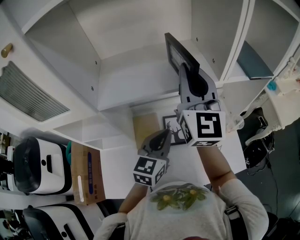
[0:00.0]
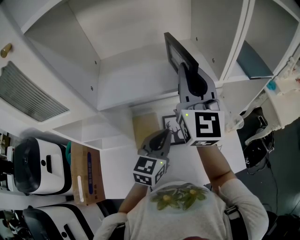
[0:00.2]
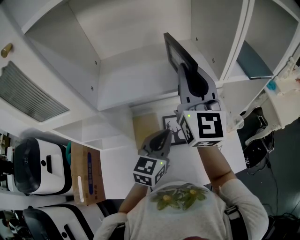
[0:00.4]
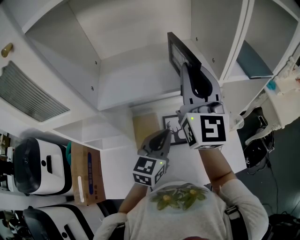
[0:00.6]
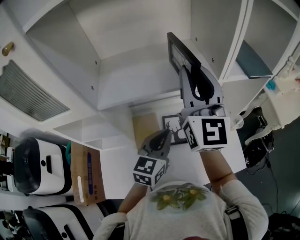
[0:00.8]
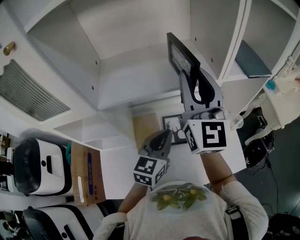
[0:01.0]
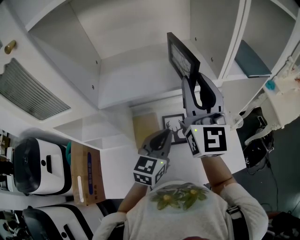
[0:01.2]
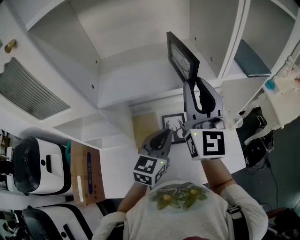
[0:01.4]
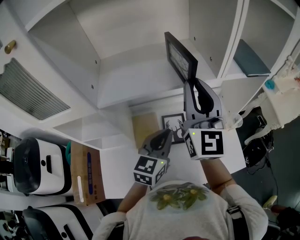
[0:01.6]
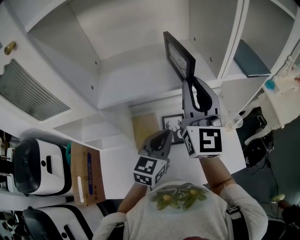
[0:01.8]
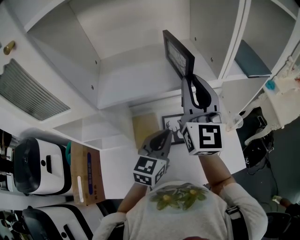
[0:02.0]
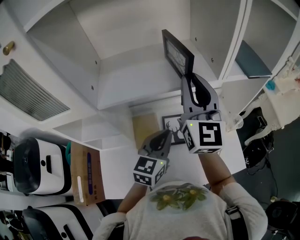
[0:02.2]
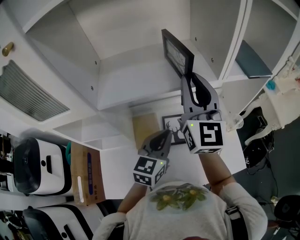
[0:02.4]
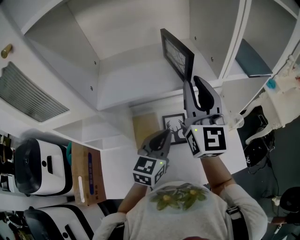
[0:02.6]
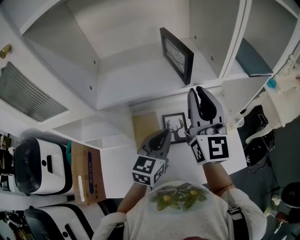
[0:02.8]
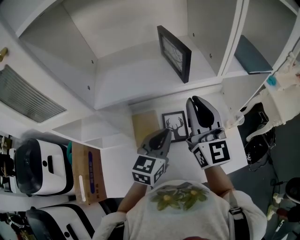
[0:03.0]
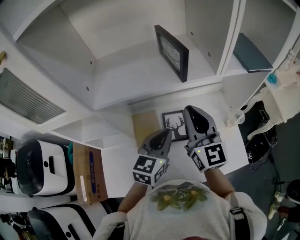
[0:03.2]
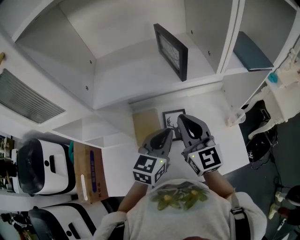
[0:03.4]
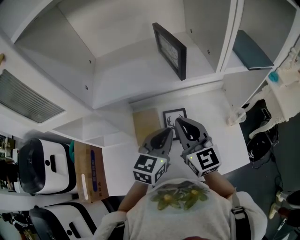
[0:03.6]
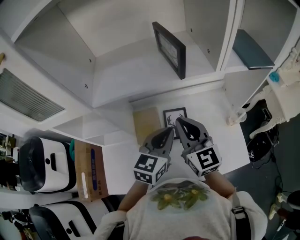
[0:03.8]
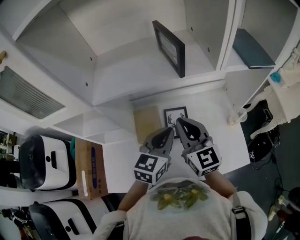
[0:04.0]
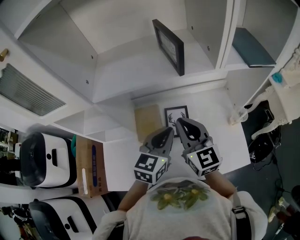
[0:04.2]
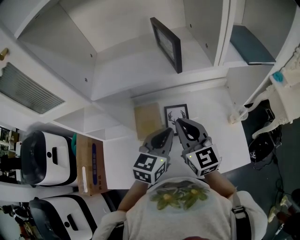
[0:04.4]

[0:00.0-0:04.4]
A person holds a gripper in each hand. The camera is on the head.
0:00.0 to 0:01.4: The right gripper ends up approximately 5 cm from where it was.
0:01.4 to 0:03.0: The right gripper heads downward, covering some 5 cm.
0:03.0 to 0:04.4: The right gripper travels downward by some 10 cm, and turns by about 20 degrees.

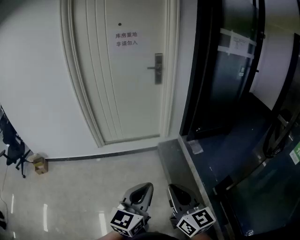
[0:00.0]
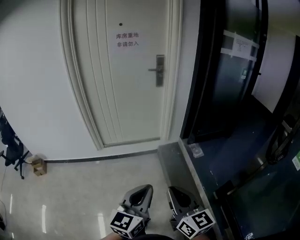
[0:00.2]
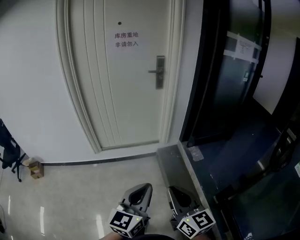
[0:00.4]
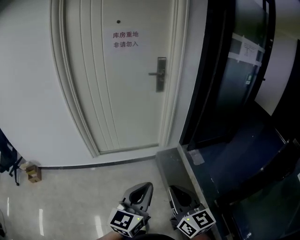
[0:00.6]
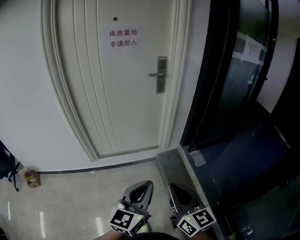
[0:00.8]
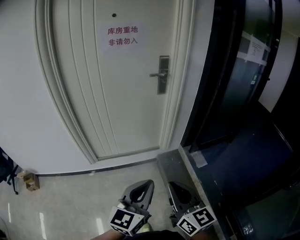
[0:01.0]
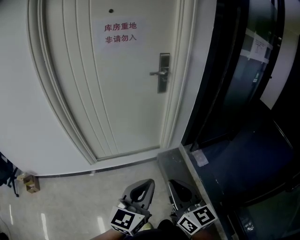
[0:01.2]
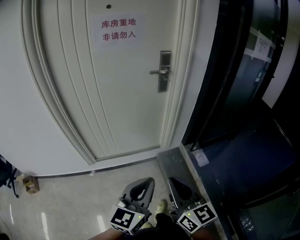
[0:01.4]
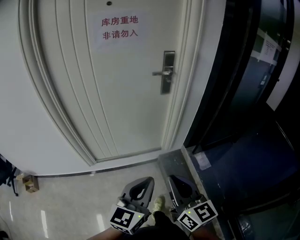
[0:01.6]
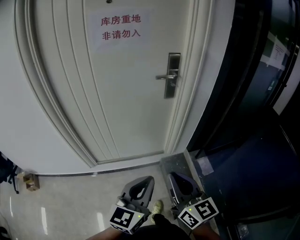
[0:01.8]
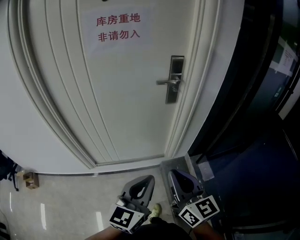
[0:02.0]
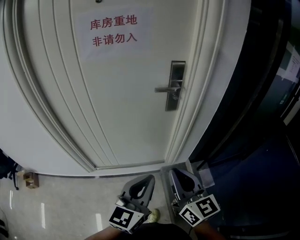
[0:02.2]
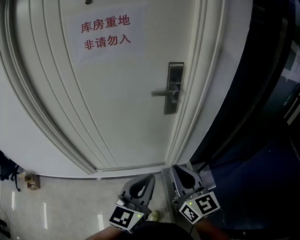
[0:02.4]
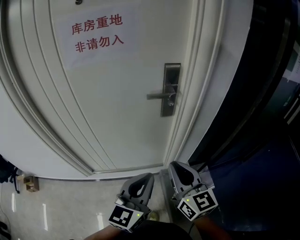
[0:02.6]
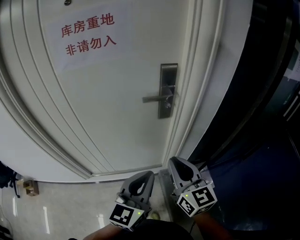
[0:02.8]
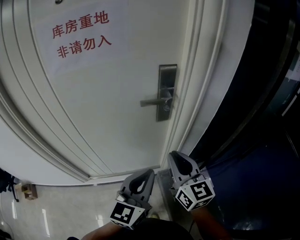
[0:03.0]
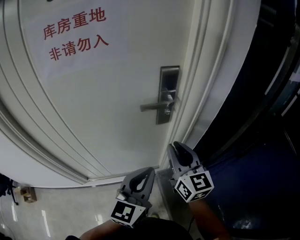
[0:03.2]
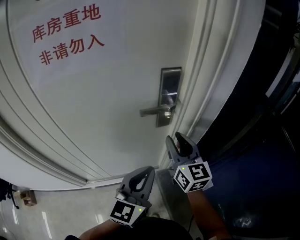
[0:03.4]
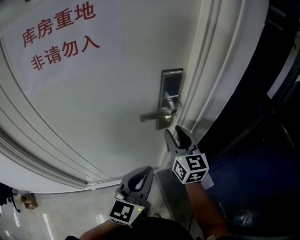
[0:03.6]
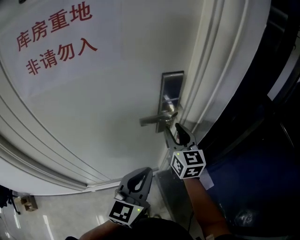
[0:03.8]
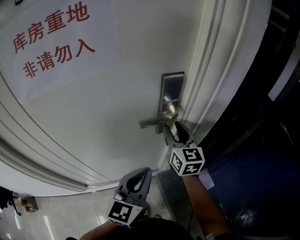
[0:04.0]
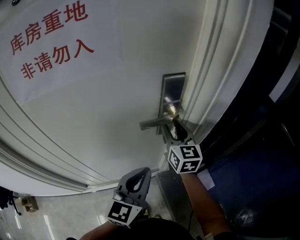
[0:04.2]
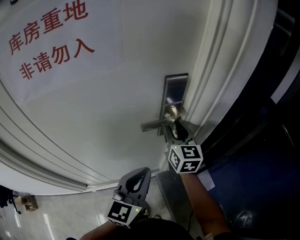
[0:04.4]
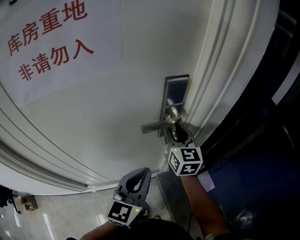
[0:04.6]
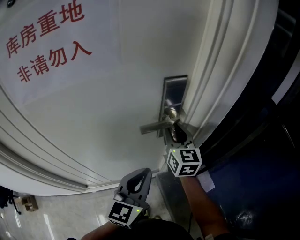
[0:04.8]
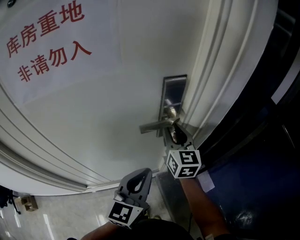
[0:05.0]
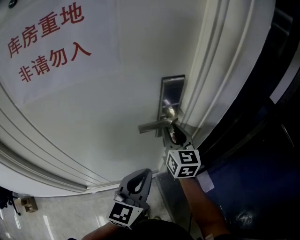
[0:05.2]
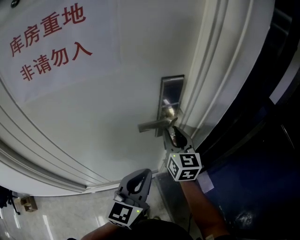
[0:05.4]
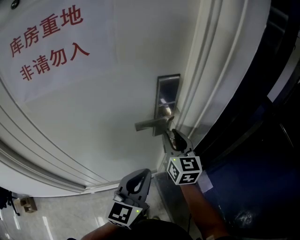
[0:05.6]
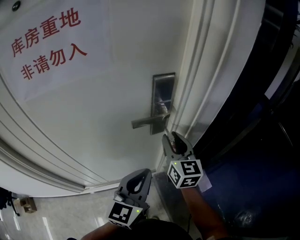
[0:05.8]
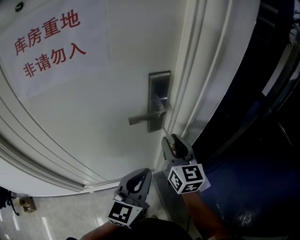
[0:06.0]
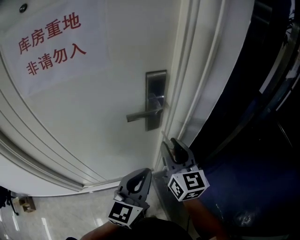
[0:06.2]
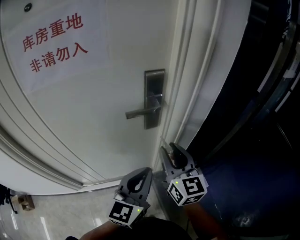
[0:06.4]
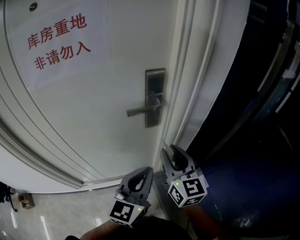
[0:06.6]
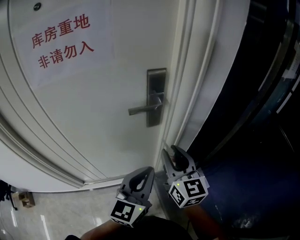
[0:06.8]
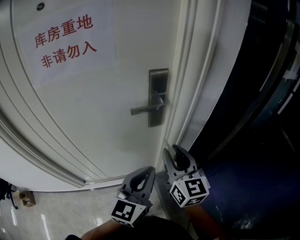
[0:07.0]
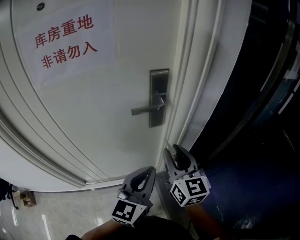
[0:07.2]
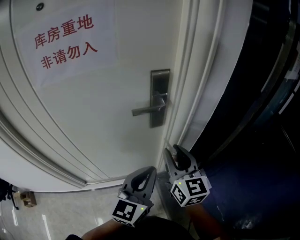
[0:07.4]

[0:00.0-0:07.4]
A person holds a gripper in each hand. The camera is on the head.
0:00.0 to 0:01.4: The two grippers go approximately 35 cm forward.
0:01.4 to 0:03.0: The two grippers go approximately 40 cm forward.
0:03.0 to 0:04.4: The right gripper heads forward, covering approximately 25 cm, and opens up; the left gripper travels forward by approximately 15 cm.
0:04.4 to 0:06.0: The right gripper heads backward, covering some 10 cm, while the left gripper ends up roughly 5 cm from where it was.
0:06.0 to 0:07.4: The right gripper moves backward, about 10 cm.

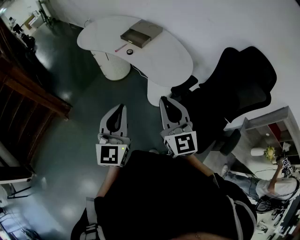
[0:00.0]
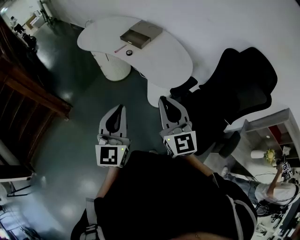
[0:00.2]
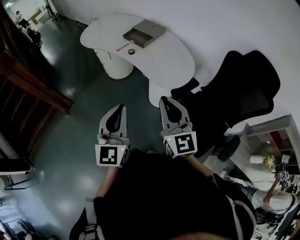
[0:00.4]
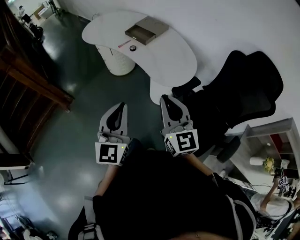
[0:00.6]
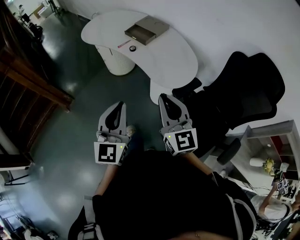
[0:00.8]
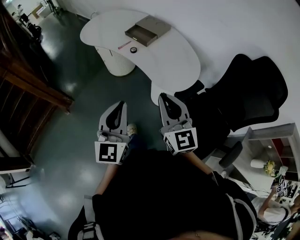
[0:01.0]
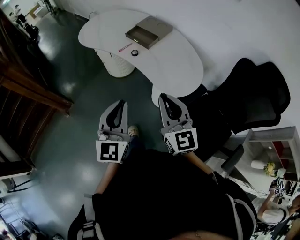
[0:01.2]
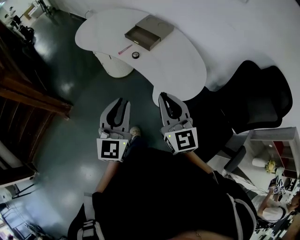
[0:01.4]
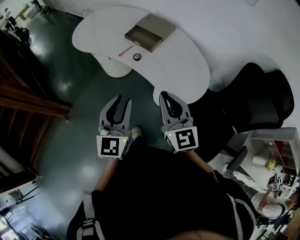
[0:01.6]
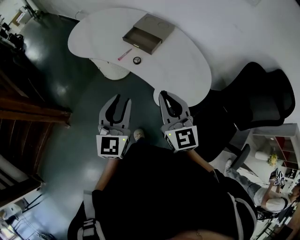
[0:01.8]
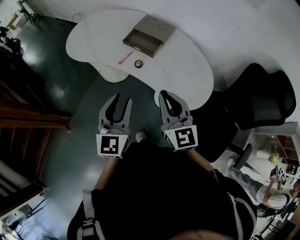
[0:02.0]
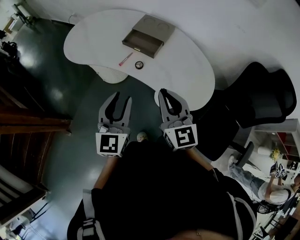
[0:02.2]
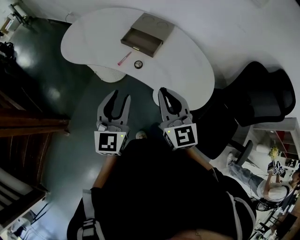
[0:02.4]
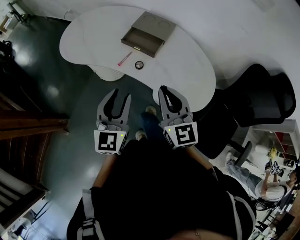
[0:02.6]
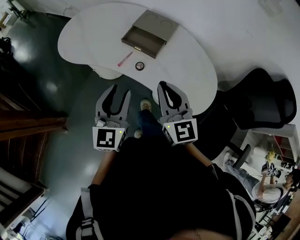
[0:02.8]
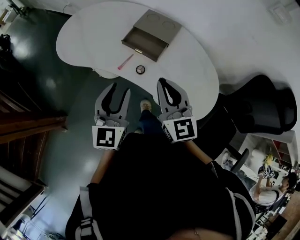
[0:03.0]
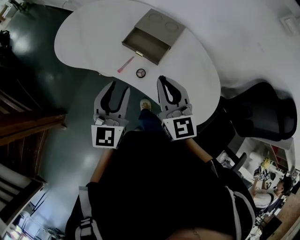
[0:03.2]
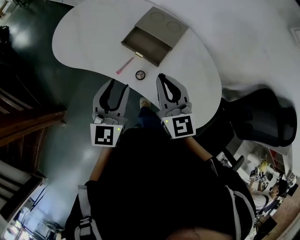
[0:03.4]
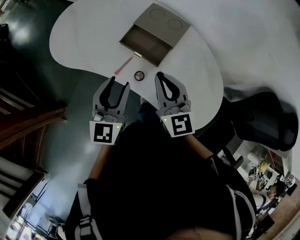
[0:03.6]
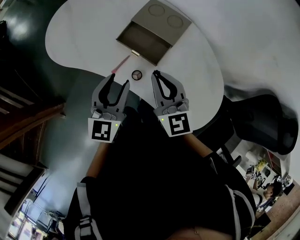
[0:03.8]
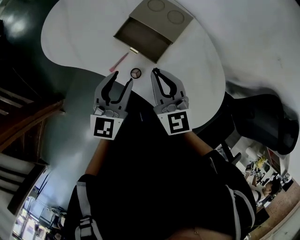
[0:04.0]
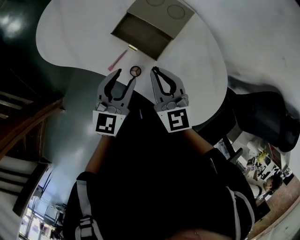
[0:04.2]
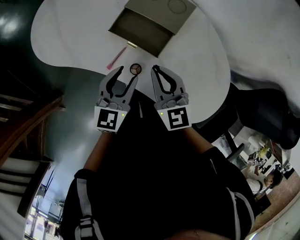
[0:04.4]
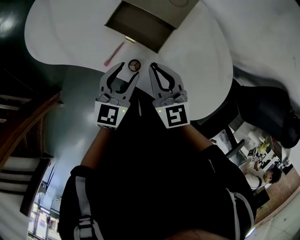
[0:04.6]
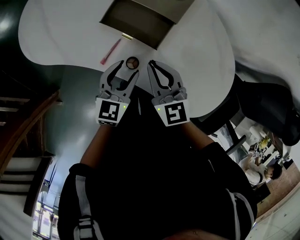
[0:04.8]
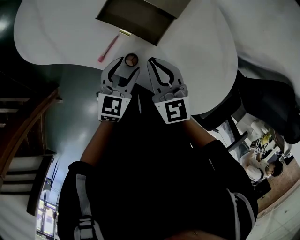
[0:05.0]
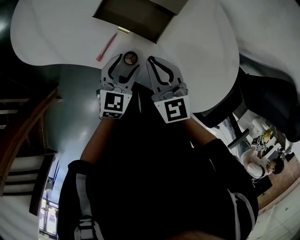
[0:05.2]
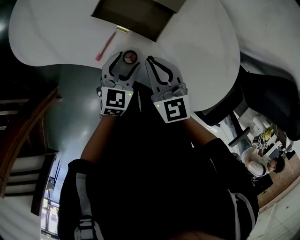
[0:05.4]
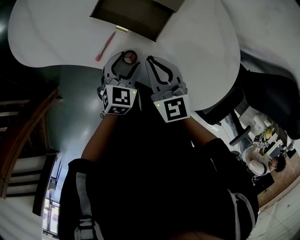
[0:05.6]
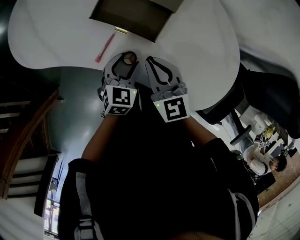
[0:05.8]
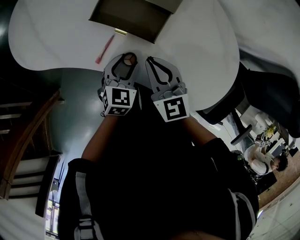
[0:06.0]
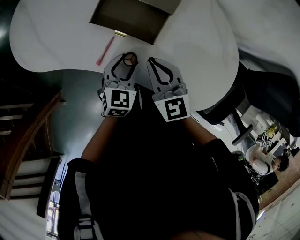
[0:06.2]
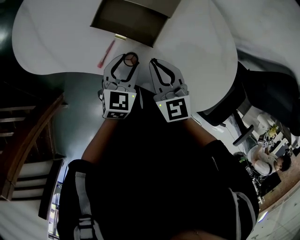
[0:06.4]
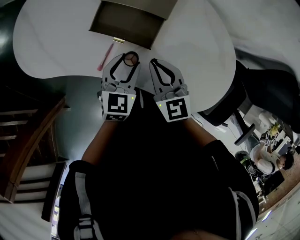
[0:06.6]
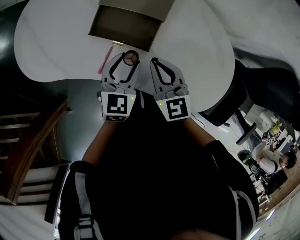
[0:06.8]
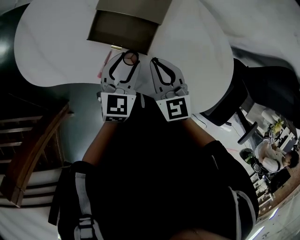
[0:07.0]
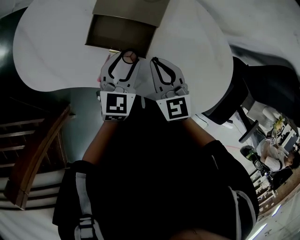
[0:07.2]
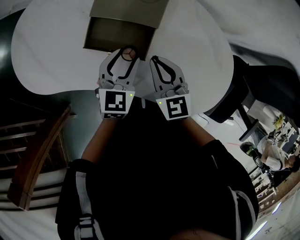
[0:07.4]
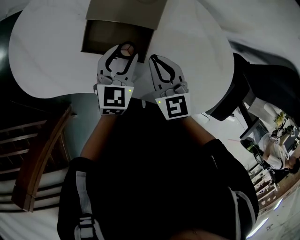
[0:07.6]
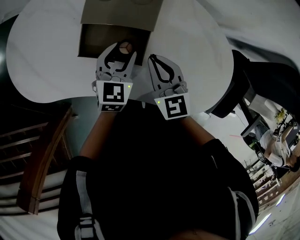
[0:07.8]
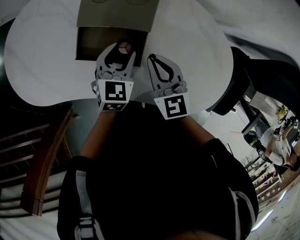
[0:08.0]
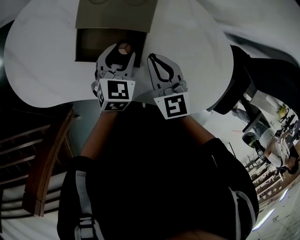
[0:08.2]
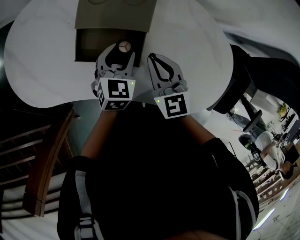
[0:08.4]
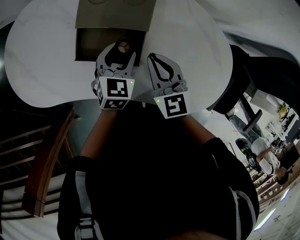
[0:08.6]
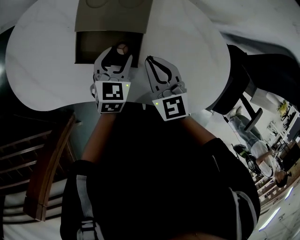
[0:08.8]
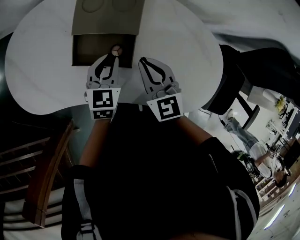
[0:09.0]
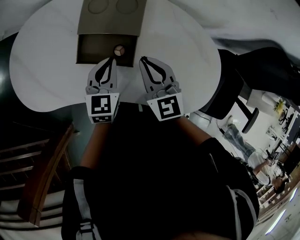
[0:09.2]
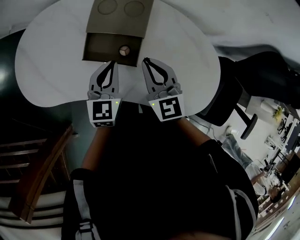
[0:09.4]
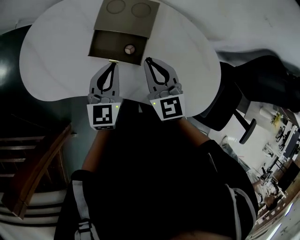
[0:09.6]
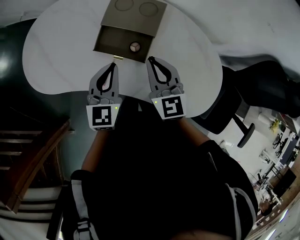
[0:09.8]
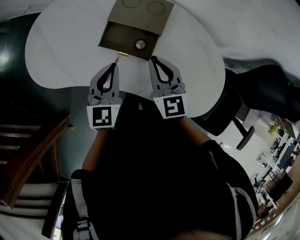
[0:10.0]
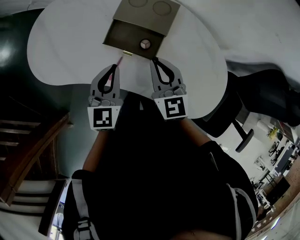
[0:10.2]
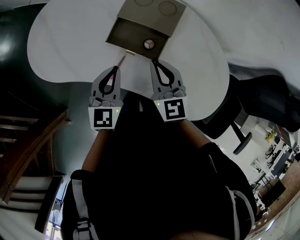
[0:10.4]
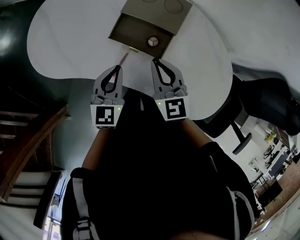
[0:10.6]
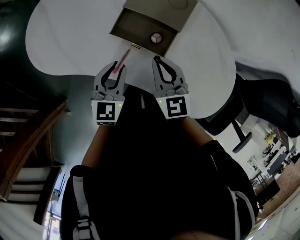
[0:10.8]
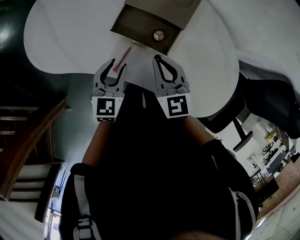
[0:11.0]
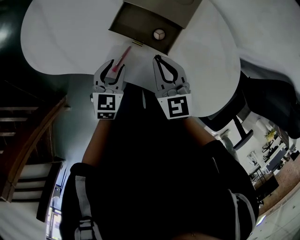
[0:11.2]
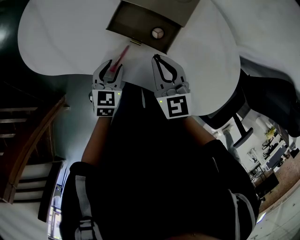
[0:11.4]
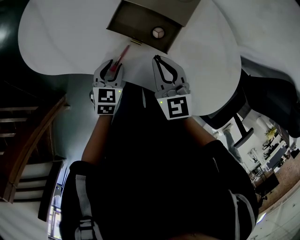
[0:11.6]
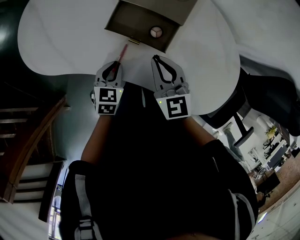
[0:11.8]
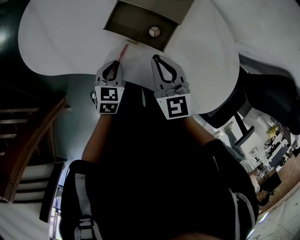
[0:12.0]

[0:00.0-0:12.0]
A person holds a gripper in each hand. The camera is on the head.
0:00.0 to 0:01.6: The two grippers go some 20 cm forward. The left gripper opens its fingers.
0:01.6 to 0:03.0: Both grippers travel together forward, some 20 cm.
0:03.0 to 0:04.4: Both grippers move forward and downward, roughly 20 cm. The left gripper swivels approximately 20 degrees.
0:04.4 to 0:06.0: The right gripper goes roughly 10 cm downward; the left gripper shifts some 15 cm downward, and rotates approximately 20 degrees.
0:06.0 to 0:07.6: The right gripper moves forward and to the right, approximately 10 cm. Meanwhile the left gripper shifts approximately 15 cm forward and upward.
0:07.6 to 0:09.0: The left gripper closes its fingers.
0:09.0 to 0:10.4: The left gripper travels to the left, backward and upward by approximately 15 cm, and turns by about 20 degrees. Meanwhile the right gripper heads to the left, covering about 5 cm.
0:10.4 to 0:12.0: The right gripper is displaced downward by some 5 cm, while the left gripper moves downward, some 15 cm, rotates approximately 30 degrees, and opens and closes again.
